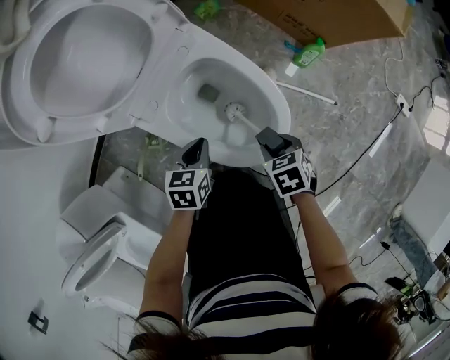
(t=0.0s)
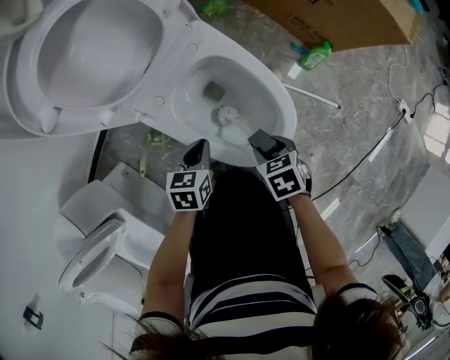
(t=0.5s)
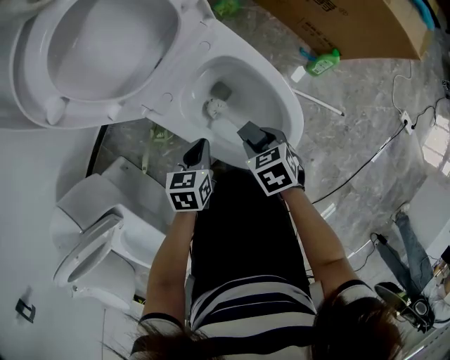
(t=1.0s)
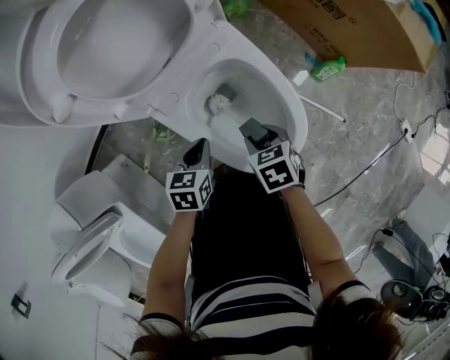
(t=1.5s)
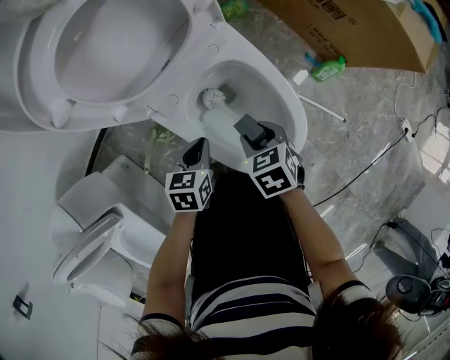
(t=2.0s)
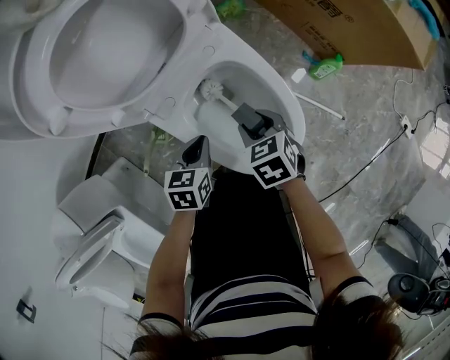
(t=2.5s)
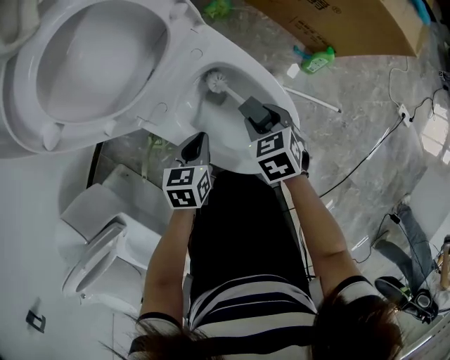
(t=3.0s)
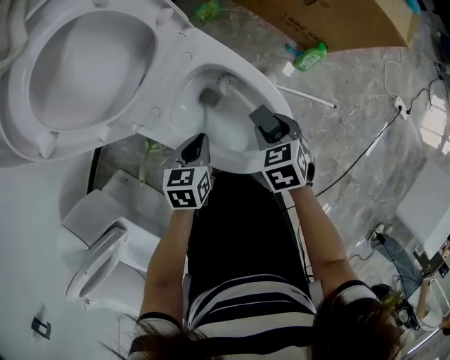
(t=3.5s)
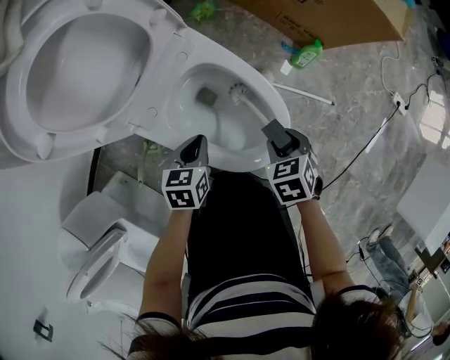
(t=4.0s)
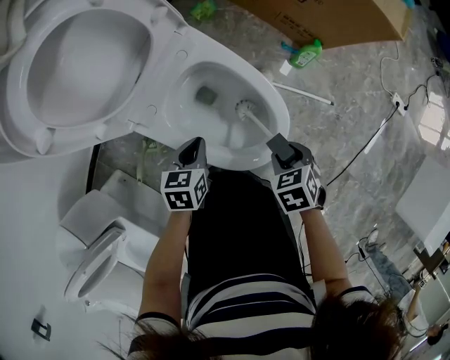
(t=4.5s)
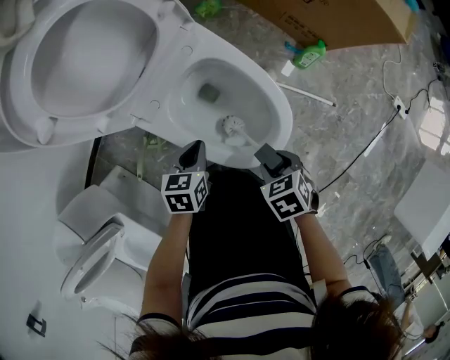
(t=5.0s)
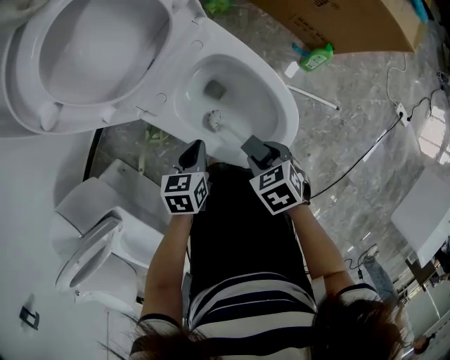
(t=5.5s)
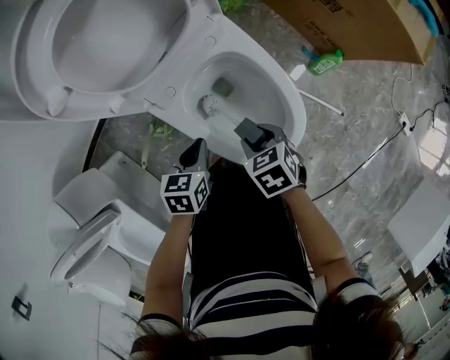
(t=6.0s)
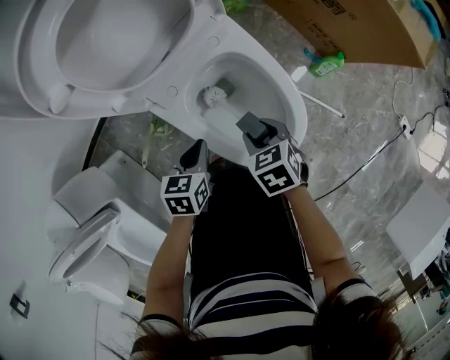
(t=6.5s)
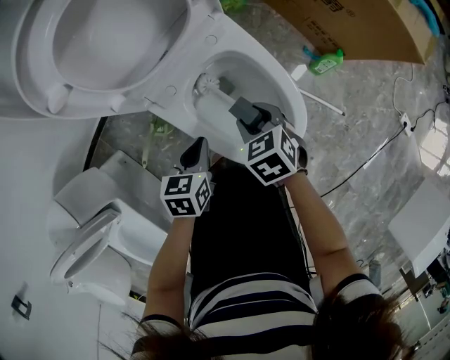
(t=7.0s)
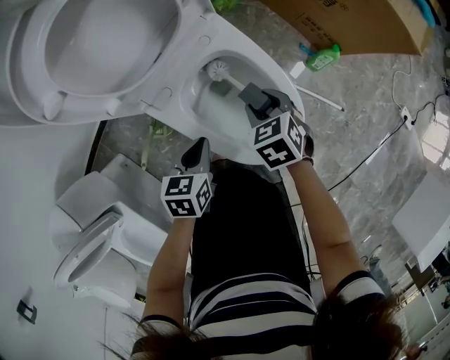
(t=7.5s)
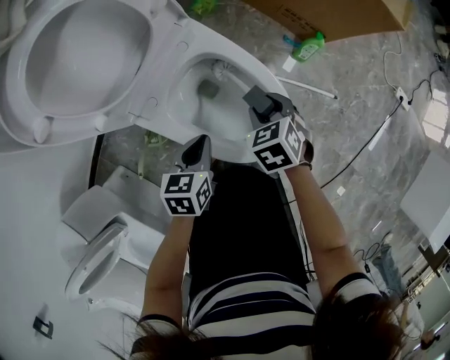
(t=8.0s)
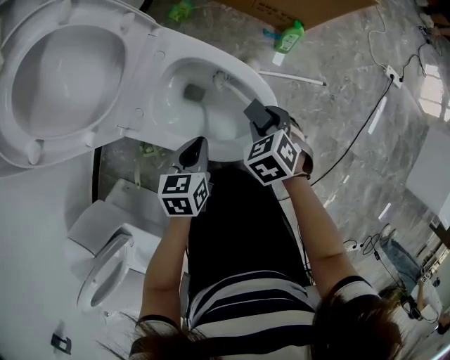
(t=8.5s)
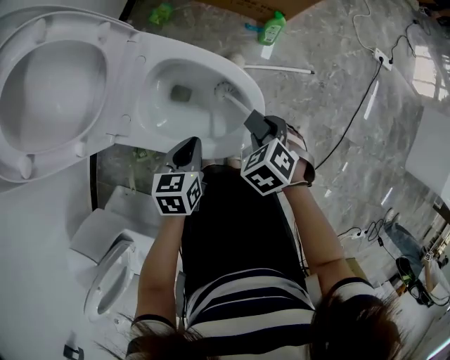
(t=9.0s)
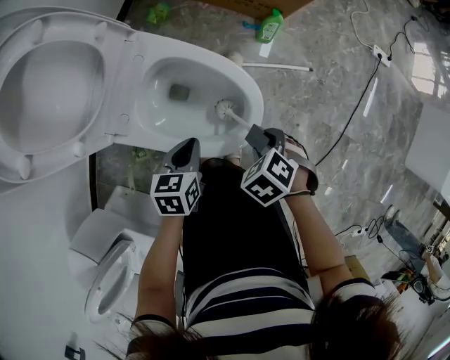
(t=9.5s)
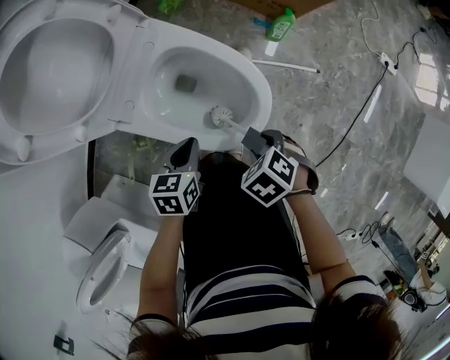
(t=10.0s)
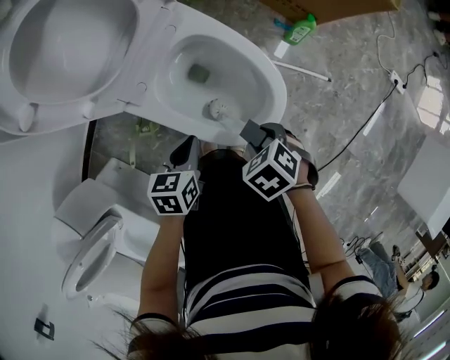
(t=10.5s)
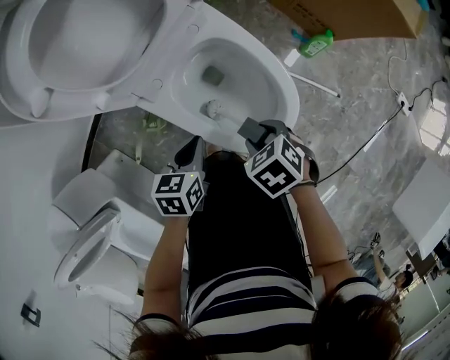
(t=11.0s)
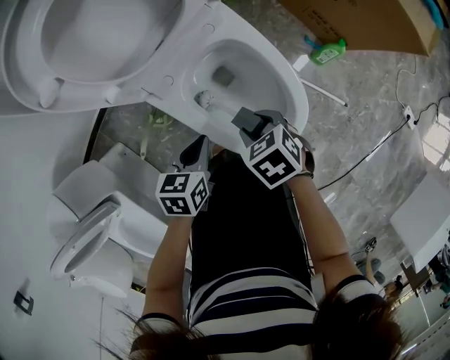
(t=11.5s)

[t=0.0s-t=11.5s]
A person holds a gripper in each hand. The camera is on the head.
t=0.0s to t=2.0s: The left gripper moves to the left, about 5 cm; the right gripper goes roughly 15 cm to the left and forward.
t=2.0s to t=4.0s: The left gripper travels to the right by some 5 cm. Meanwhile the right gripper travels to the right by roughly 15 cm.
t=4.0s to t=6.0s: The left gripper shifts by approximately 5 cm, while the right gripper shifts by some 15 cm.
t=6.0s to t=7.5s: The right gripper travels forward by approximately 10 cm.
t=7.5s to t=9.5s: The right gripper changes place by approximately 20 cm, and swivels approximately 30 degrees. Meanwhile the left gripper changes place by approximately 10 cm, and changes its angle by about 20 degrees.
t=9.5s to t=11.5s: The left gripper changes place by about 10 cm, and swivels approximately 20 degrees, while the right gripper ends up about 15 cm from where it was, and turns by approximately 20 degrees.

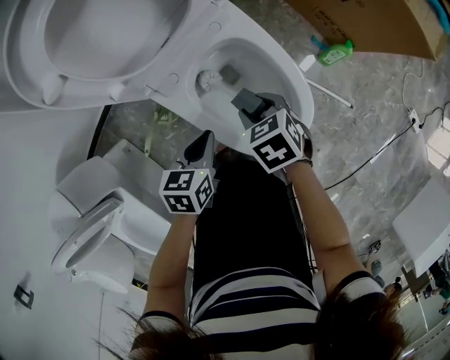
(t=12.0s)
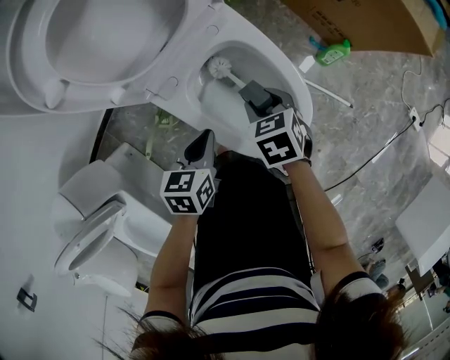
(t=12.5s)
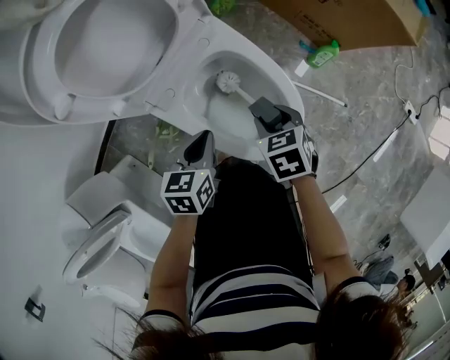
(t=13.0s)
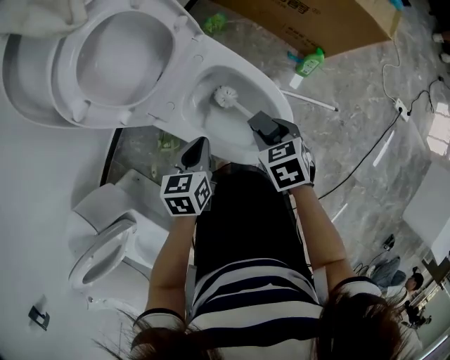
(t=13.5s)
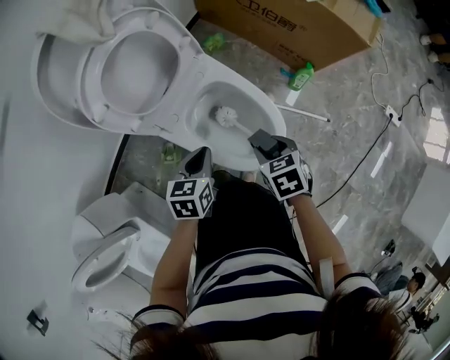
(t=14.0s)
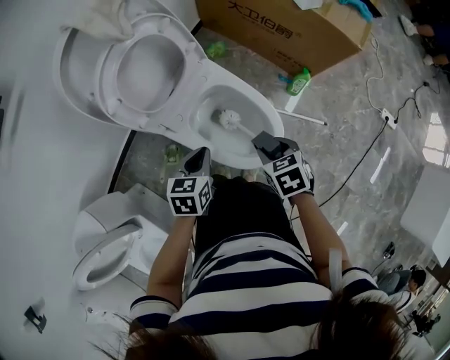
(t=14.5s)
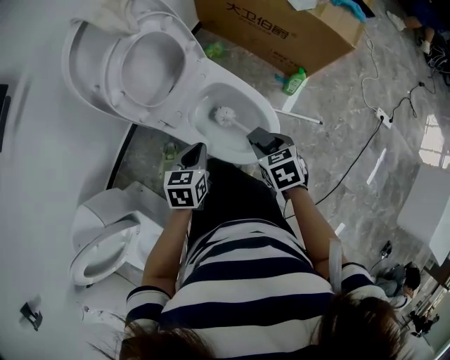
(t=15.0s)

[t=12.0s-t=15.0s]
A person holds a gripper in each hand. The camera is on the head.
t=12.0s to t=13.5s: The left gripper goes approximately 10 cm upward; the right gripper moves to the right and upward, some 10 cm.
t=13.5s to t=15.0s: The left gripper heads upward, covering roughly 10 cm. The right gripper moves upward and backward, some 10 cm.

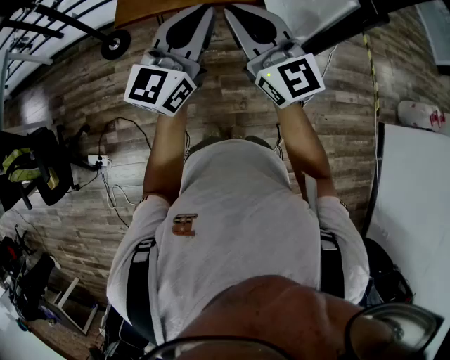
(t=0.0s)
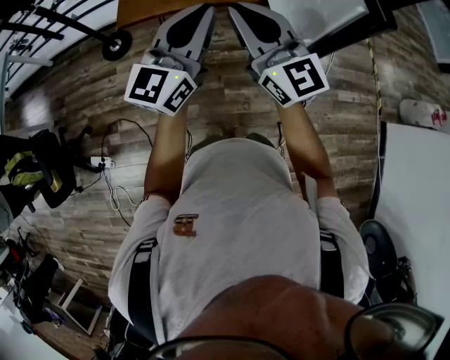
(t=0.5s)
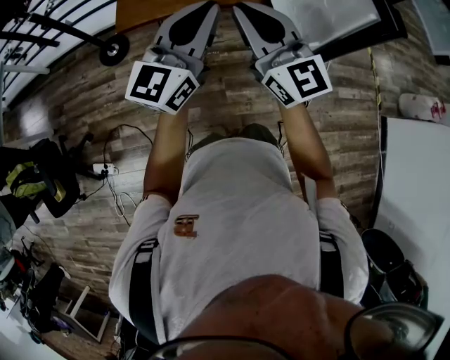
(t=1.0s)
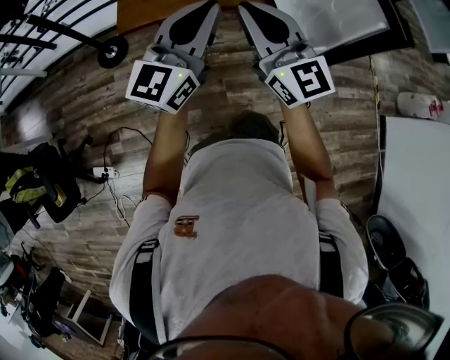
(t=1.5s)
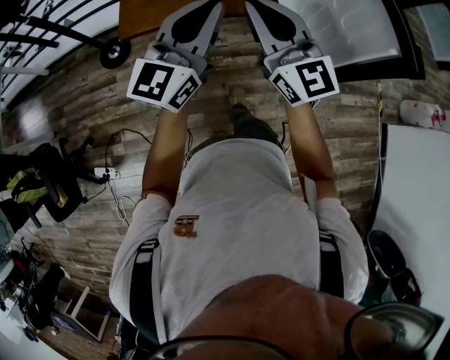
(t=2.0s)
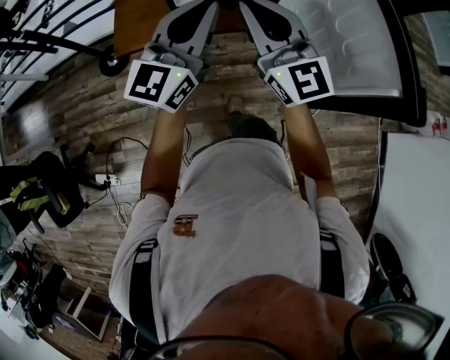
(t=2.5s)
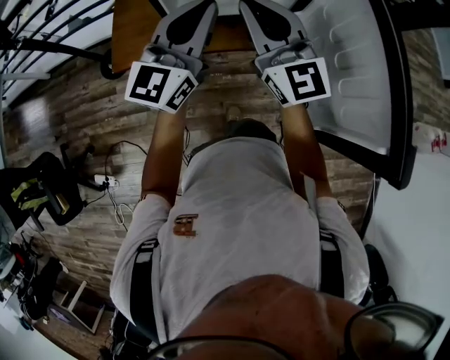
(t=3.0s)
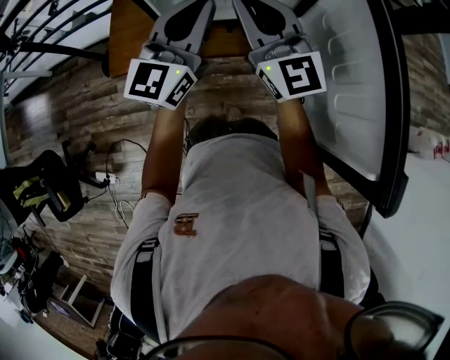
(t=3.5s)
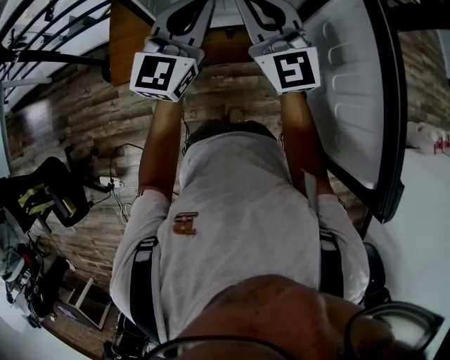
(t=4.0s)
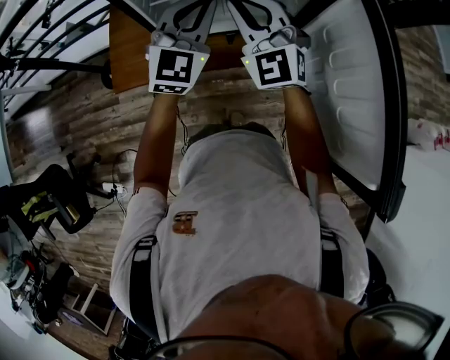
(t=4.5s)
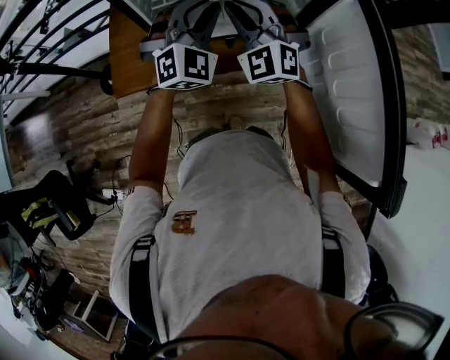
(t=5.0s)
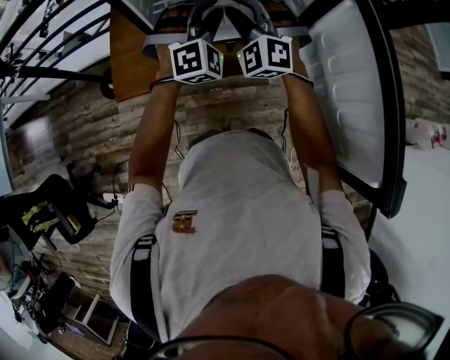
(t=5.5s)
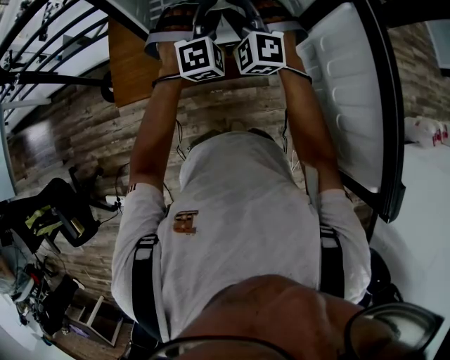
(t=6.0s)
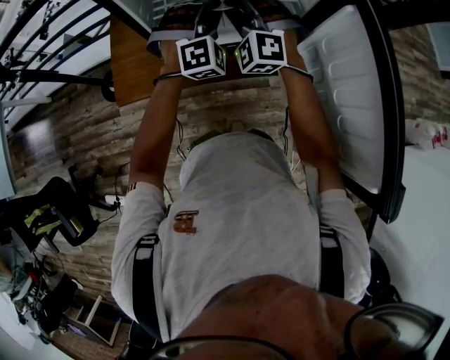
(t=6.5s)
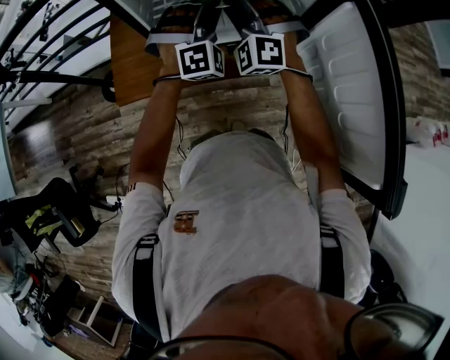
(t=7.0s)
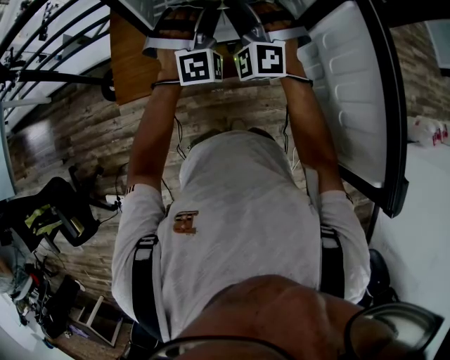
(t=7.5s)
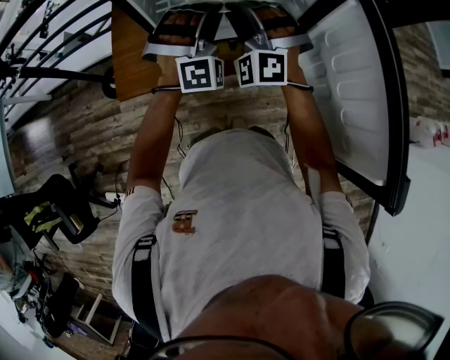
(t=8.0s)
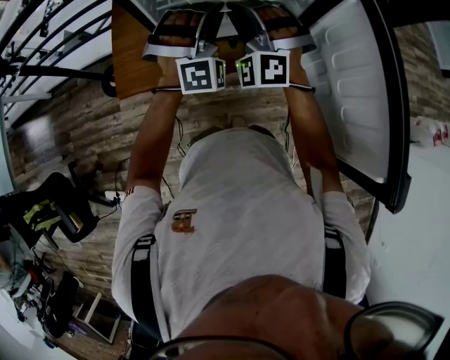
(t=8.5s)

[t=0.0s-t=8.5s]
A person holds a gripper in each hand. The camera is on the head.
t=0.0s to t=2.0s: The right gripper is displaced forward by some 10 cm. Meanwhile the left gripper travels forward and to the left by roughly 15 cm.
t=2.0s to t=4.0s: The grippers both shift forward by approximately 35 cm.
t=4.0s to t=6.5s: Both grippers move downward and forward, roughly 15 cm. The left gripper rotates around the line of its fingers by some 60 degrees, clockwise from behind, and opens, then closes again. Meanwhile the right gripper rolls counterclockwise, seen from behind, by about 50 degrees.
t=6.5s to t=8.5s: The grippers both shift backward by roughly 5 cm.

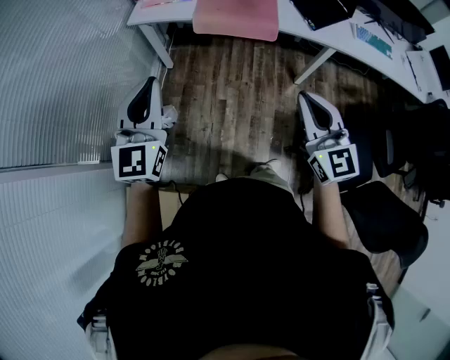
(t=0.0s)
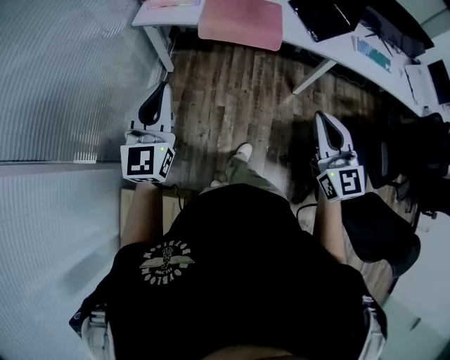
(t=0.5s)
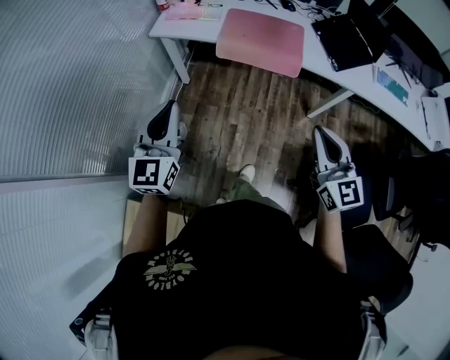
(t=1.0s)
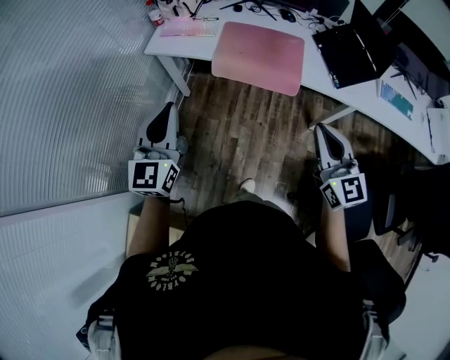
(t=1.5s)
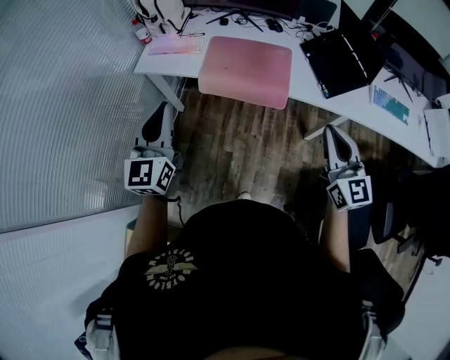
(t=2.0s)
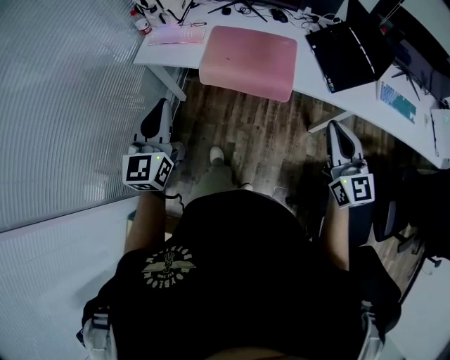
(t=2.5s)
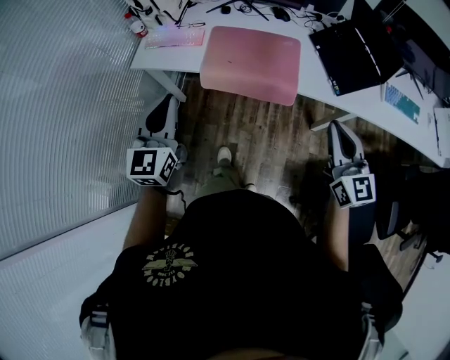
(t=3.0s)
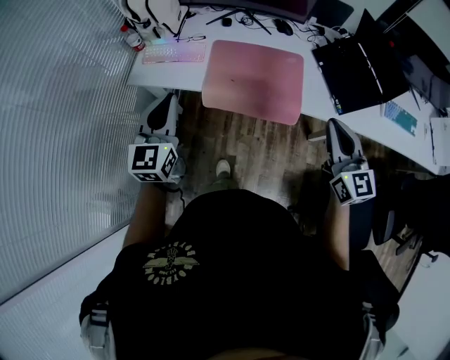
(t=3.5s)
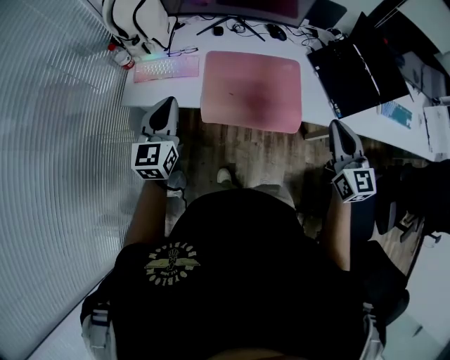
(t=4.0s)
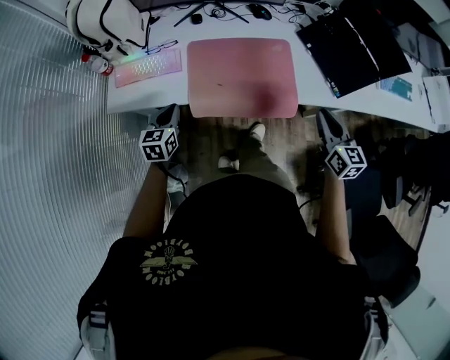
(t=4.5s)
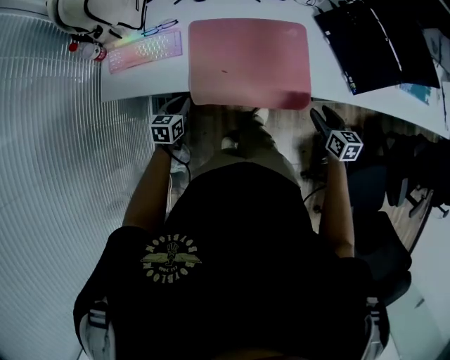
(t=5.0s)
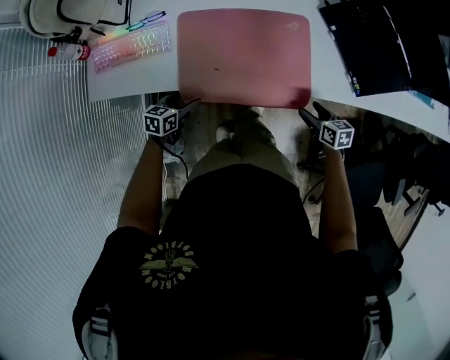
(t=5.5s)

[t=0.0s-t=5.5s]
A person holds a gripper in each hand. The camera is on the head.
t=0.0s to t=2.0s: The right gripper is displaced forward and to the right by approximately 30 cm. Meanwhile the left gripper goes approximately 25 cm forward.
t=2.0s to t=3.5s: Both grippers travel together forward, roughly 20 cm.
t=3.5s to t=5.5s: The two grippers go roughly 40 cm downward. The left gripper tips its fingers downward by some 30 degrees, and opens. The right gripper tilts its fingers roughly 40 degrees downward, and opens.
